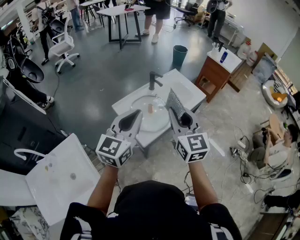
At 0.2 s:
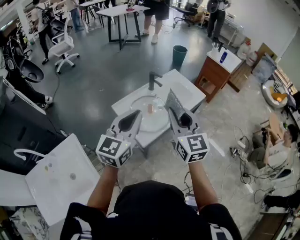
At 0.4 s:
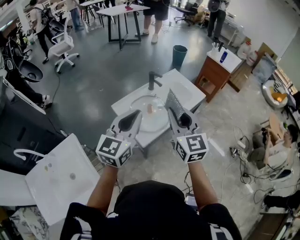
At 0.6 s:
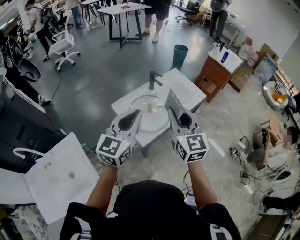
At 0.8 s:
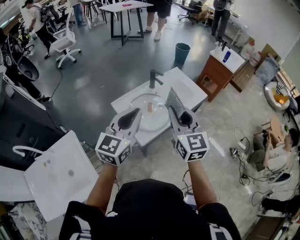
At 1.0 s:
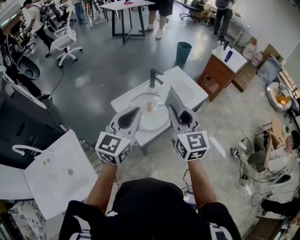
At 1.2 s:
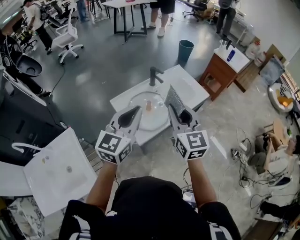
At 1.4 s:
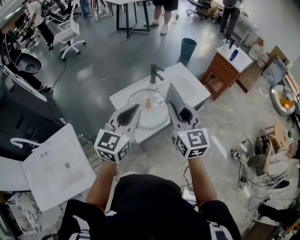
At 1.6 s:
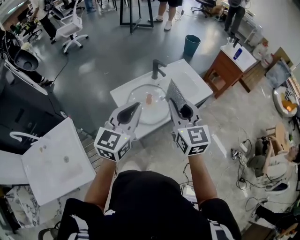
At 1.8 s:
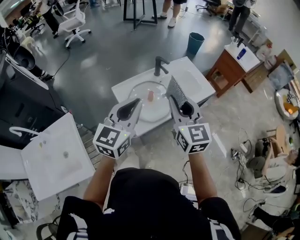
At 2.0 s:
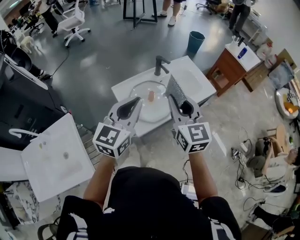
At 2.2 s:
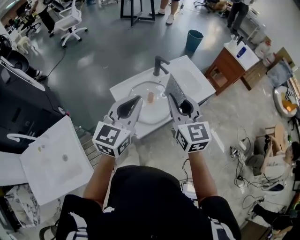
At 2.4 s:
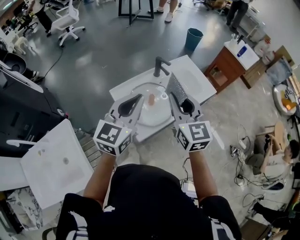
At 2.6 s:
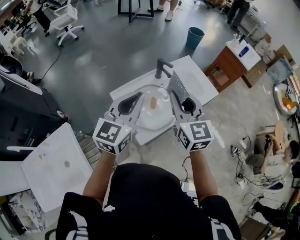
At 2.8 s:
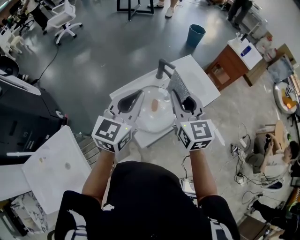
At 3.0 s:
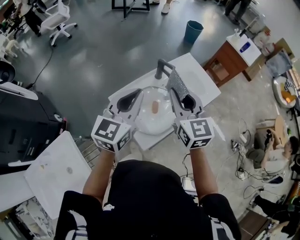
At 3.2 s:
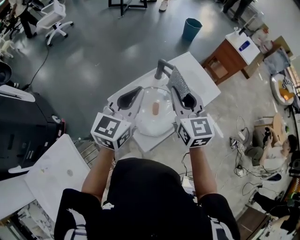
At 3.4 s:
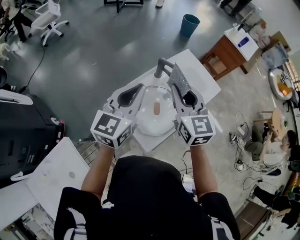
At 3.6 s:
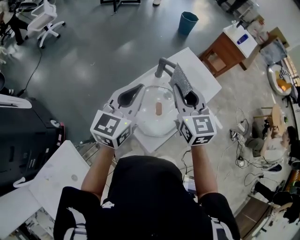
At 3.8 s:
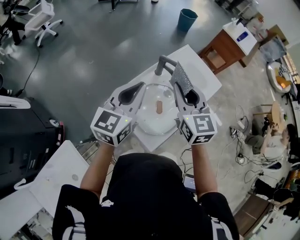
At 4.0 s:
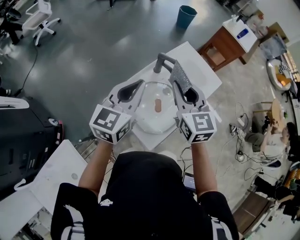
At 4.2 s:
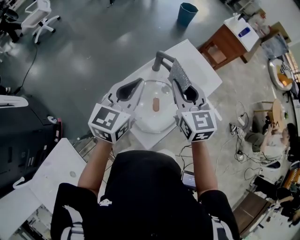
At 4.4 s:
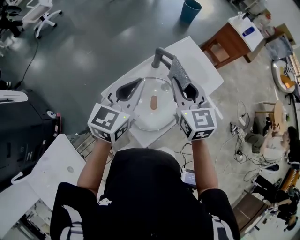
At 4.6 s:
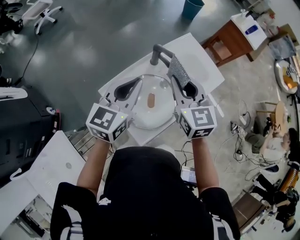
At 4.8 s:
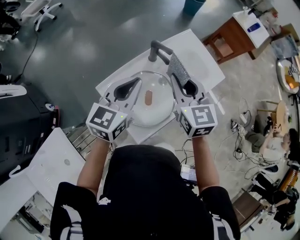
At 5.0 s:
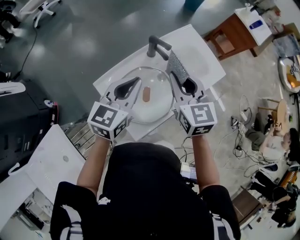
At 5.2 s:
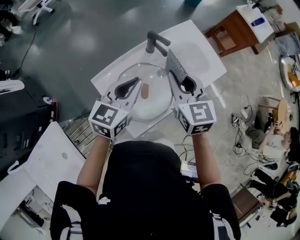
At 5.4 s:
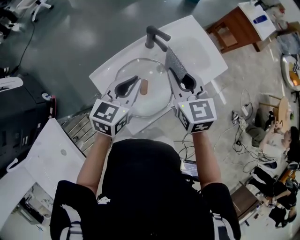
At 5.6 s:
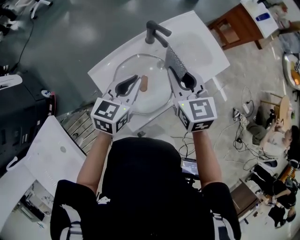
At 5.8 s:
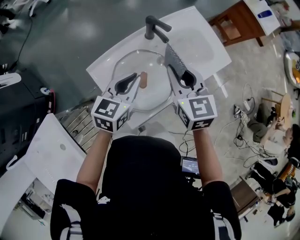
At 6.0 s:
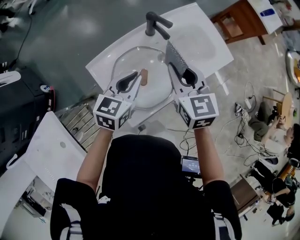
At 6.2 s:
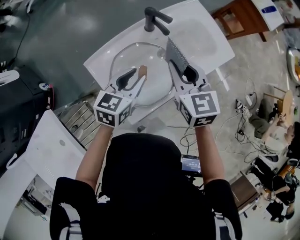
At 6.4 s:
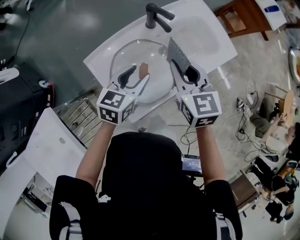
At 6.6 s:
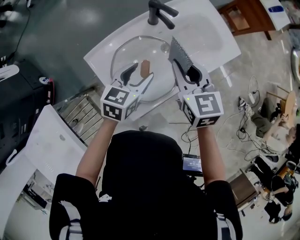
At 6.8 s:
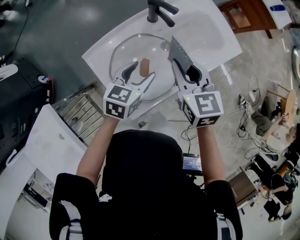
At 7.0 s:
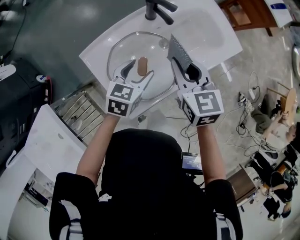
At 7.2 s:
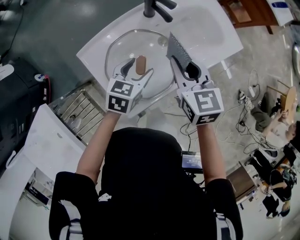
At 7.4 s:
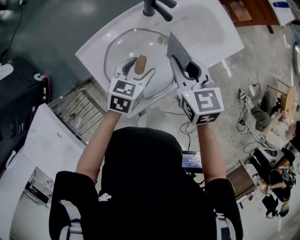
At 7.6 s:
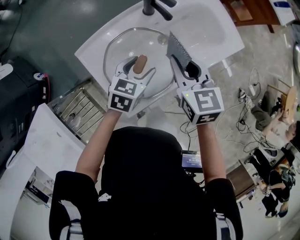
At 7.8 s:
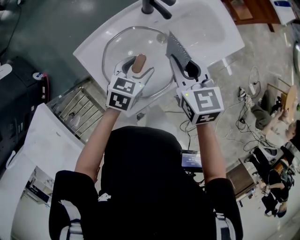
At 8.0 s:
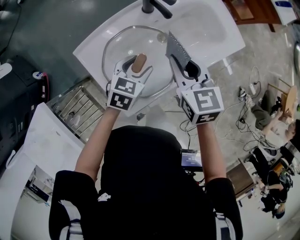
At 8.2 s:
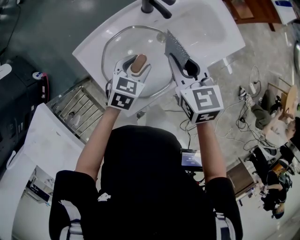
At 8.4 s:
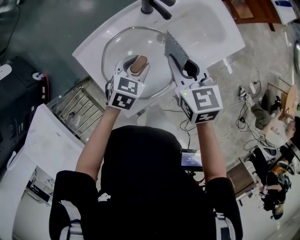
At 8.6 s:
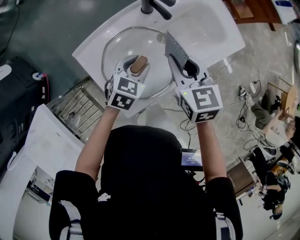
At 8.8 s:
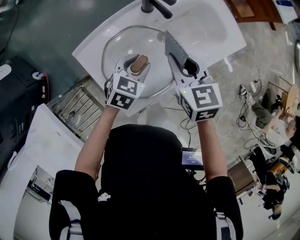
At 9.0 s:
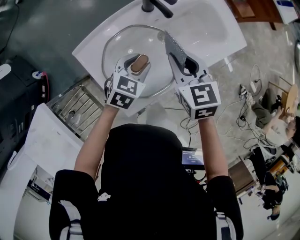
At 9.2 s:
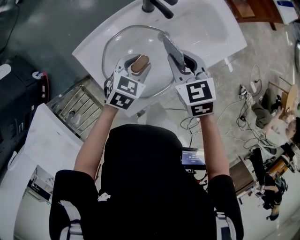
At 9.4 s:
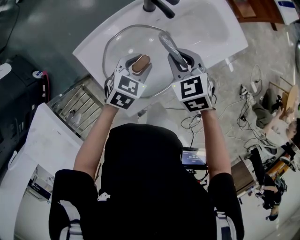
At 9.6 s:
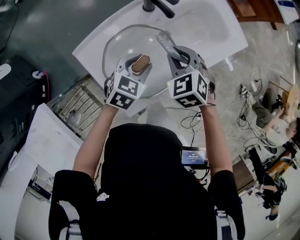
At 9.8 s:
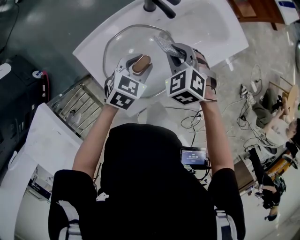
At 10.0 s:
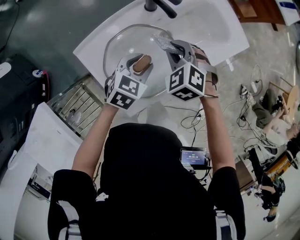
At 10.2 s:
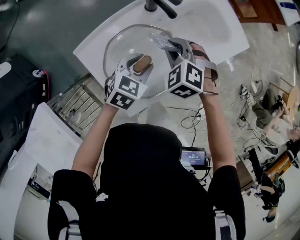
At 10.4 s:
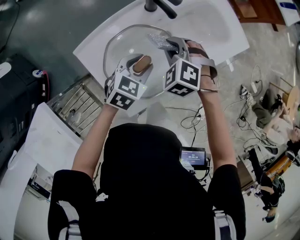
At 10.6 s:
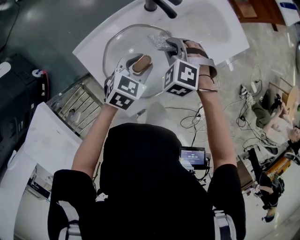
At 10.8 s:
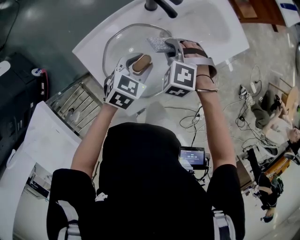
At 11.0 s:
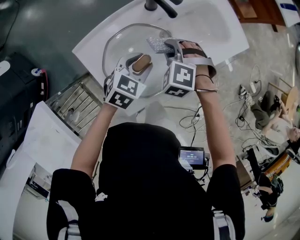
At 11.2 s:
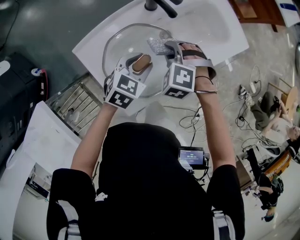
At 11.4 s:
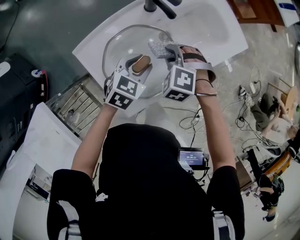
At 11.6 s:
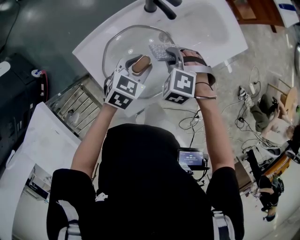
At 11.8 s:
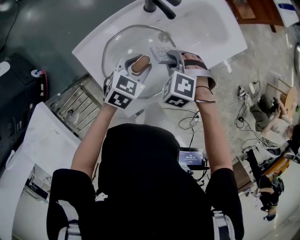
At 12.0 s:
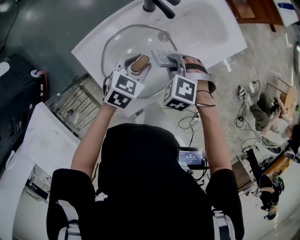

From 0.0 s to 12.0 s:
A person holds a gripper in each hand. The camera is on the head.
From 0.0 s to 1.6 s: The left gripper shifts by approximately 5 cm; the right gripper shifts some 5 cm forward.
From 1.6 s to 3.0 s: Both grippers move forward, about 15 cm.
From 3.0 s to 4.4 s: The grippers both shift forward and downward by some 10 cm.
From 4.4 s to 6.0 s: The left gripper is displaced downward by some 15 cm. Meanwhile the right gripper goes approximately 10 cm downward.
From 6.0 s to 7.6 s: The right gripper moves downward, some 10 cm; the left gripper goes approximately 10 cm downward, and opens up.
From 7.6 s to 9.0 s: The left gripper closes its fingers.
From 9.0 s to 10.4 s: The right gripper heads downward, covering approximately 10 cm, and rotates around the line of its fingers by approximately 50 degrees, counterclockwise from behind.
From 10.4 s to 12.0 s: The right gripper heads backward, covering roughly 5 cm.

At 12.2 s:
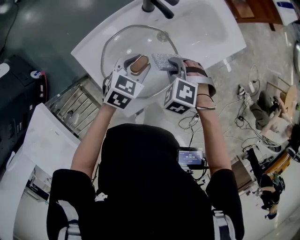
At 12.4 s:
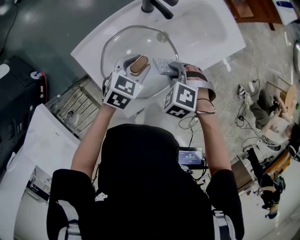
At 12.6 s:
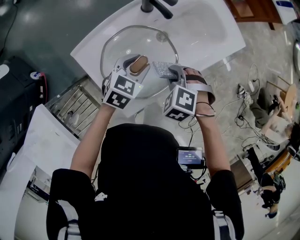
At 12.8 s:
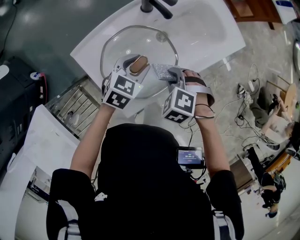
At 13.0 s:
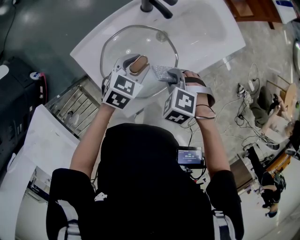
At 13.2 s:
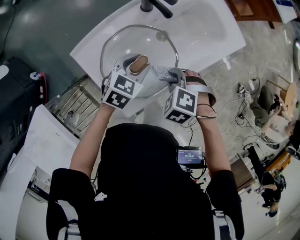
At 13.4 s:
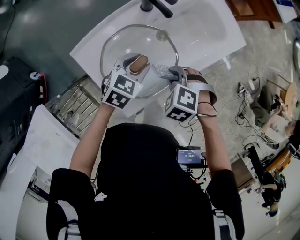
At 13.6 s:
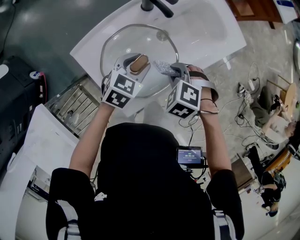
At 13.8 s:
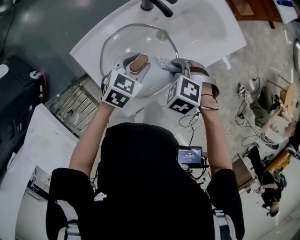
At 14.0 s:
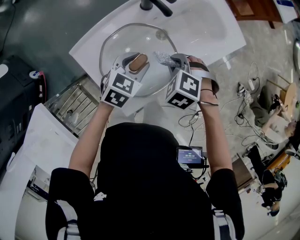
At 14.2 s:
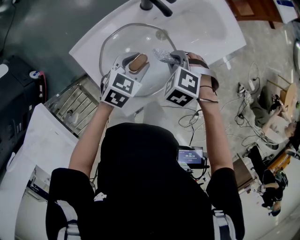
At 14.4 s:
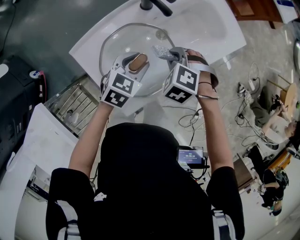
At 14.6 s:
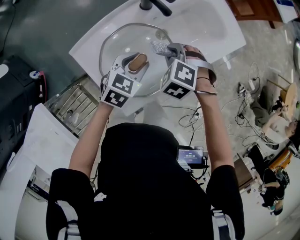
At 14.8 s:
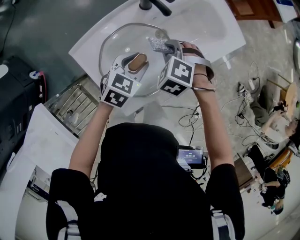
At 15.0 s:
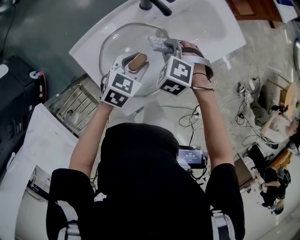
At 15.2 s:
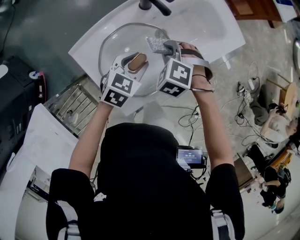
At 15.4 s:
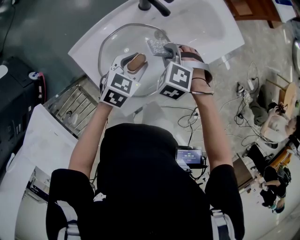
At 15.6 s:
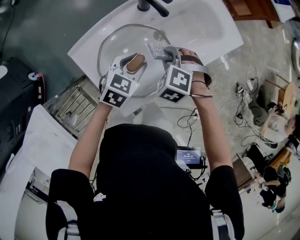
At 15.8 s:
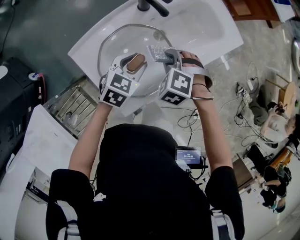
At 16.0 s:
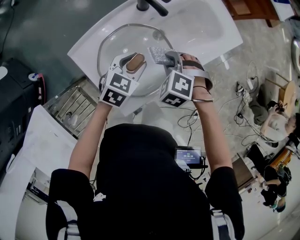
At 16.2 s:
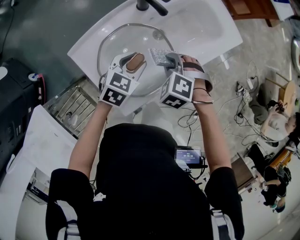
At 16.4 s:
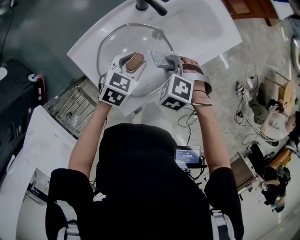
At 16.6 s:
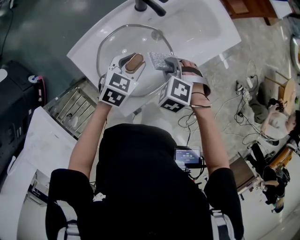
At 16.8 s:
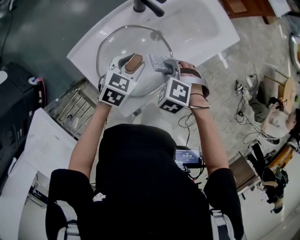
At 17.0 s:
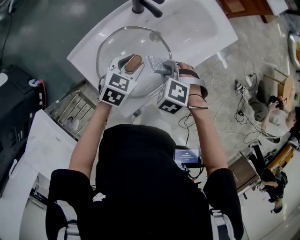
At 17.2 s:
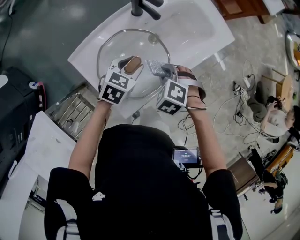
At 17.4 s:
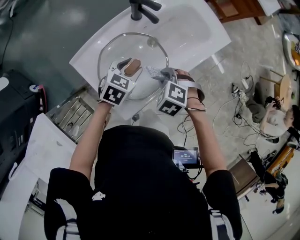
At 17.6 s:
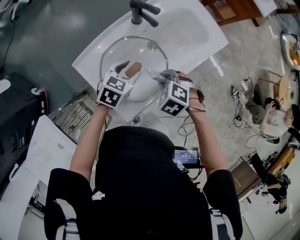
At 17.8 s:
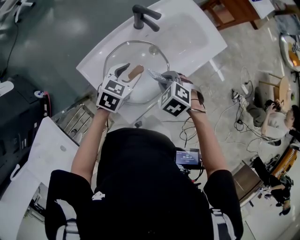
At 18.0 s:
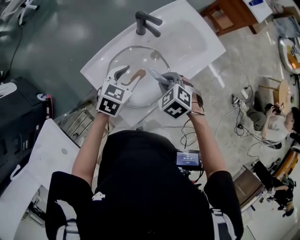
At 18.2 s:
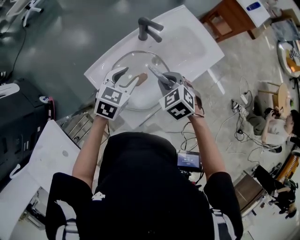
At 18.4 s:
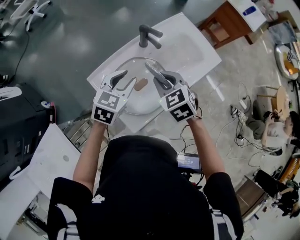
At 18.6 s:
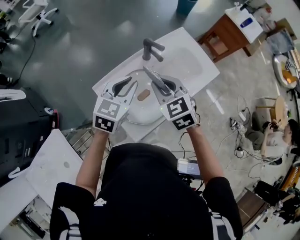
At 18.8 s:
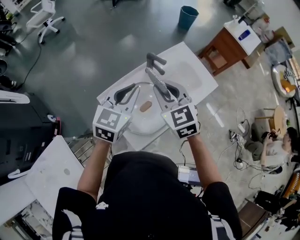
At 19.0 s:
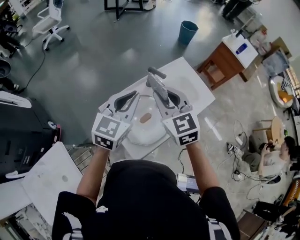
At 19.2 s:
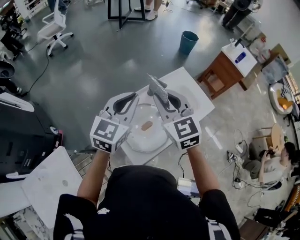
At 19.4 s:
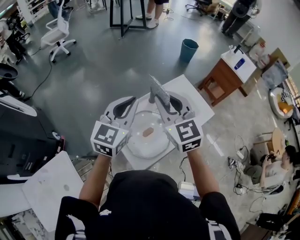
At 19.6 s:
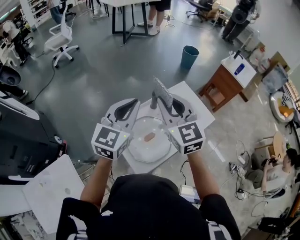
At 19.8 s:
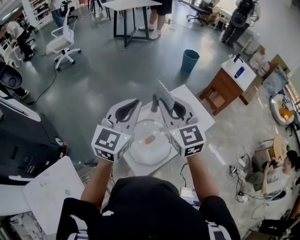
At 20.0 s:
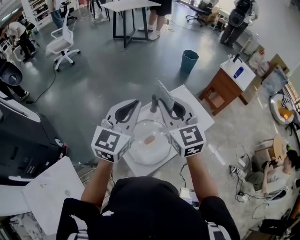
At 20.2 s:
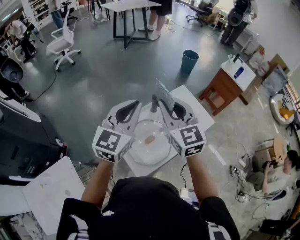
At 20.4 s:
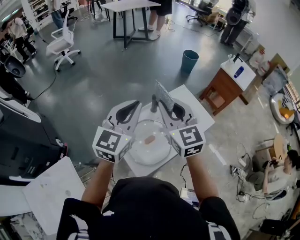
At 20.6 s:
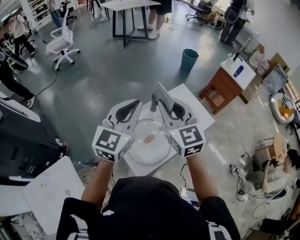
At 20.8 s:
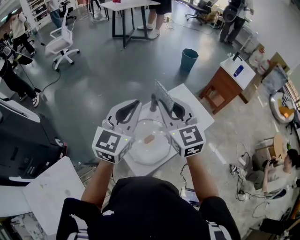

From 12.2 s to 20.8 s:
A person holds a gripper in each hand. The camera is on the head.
From 12.2 s to 13.6 s: The grippers make only small movements.
From 13.6 s to 15.0 s: The right gripper shifts by approximately 10 cm.
From 15.0 s to 16.6 s: The right gripper is displaced backward by roughly 5 cm.
From 16.6 s to 18.0 s: The grippers both shift upward by about 10 cm.
From 18.0 s to 19.4 s: Both grippers travel together upward, approximately 35 cm. The right gripper tilts its fingers roughly 50 degrees upward. Meanwhile the left gripper points its fingers some 40 degrees further upward, and closes up.
From 19.4 s to 20.8 s: There are only small adjustments of the grippers.

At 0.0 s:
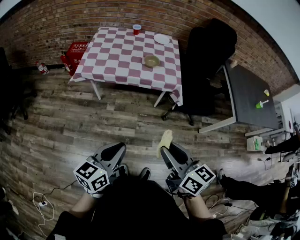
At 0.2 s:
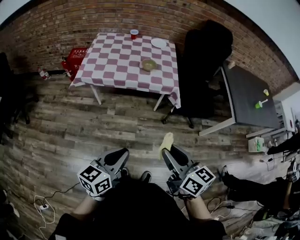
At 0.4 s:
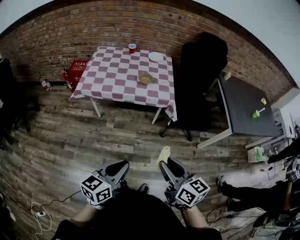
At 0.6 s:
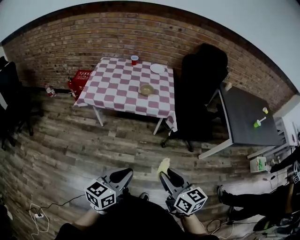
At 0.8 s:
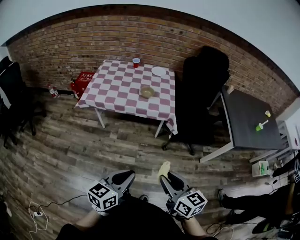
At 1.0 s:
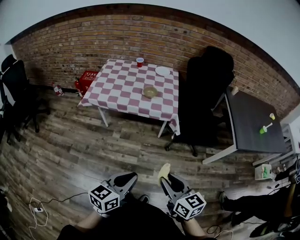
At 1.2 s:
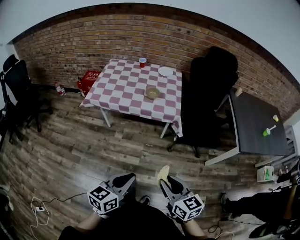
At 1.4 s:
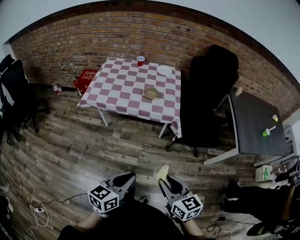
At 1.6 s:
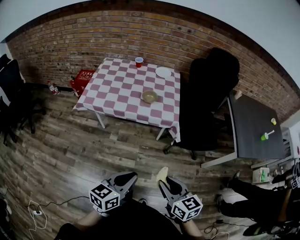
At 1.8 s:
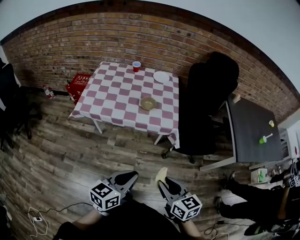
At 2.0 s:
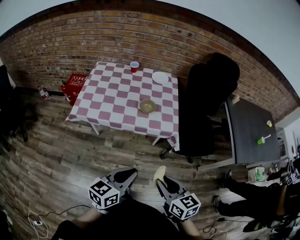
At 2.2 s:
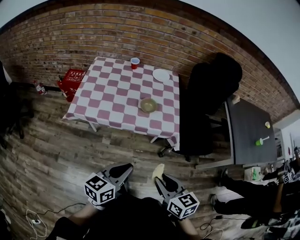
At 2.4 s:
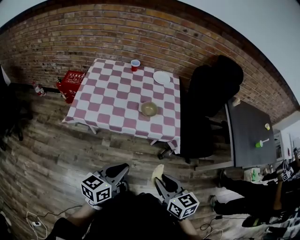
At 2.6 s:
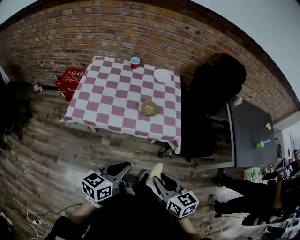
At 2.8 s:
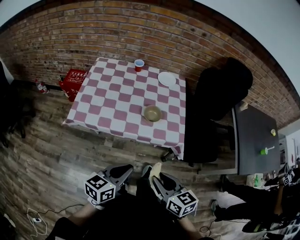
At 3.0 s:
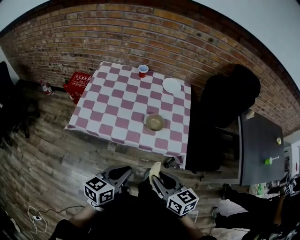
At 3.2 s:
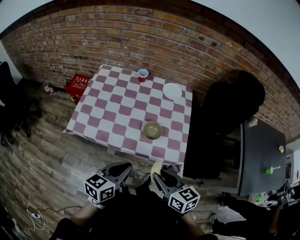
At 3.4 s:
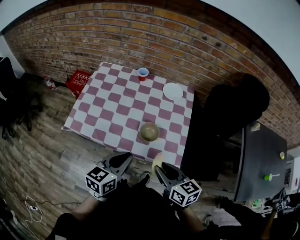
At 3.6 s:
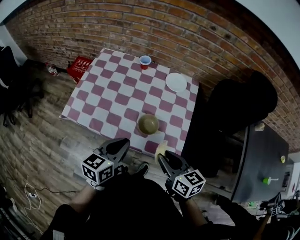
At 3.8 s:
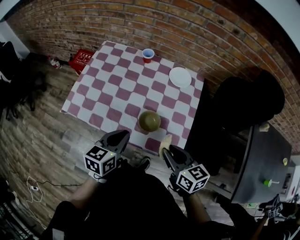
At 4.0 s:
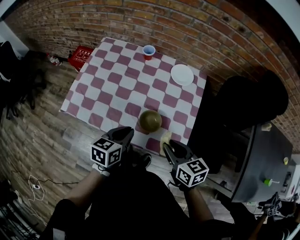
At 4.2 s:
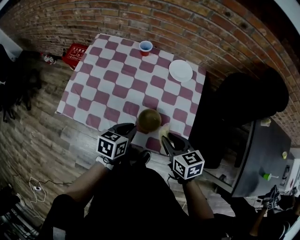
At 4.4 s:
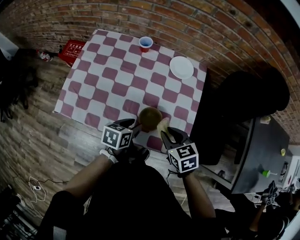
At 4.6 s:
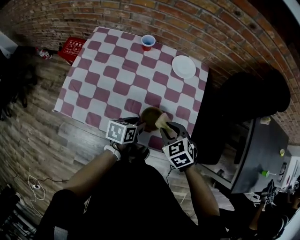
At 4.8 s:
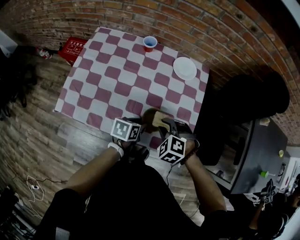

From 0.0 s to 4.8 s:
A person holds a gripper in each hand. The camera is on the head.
From 0.0 s to 1.6 s: The left gripper is displaced to the right and forward by approximately 15 cm. Meanwhile the right gripper moves to the right and downward, about 10 cm.
From 1.6 s to 3.2 s: The grippers both shift forward by some 35 cm.
From 3.2 s to 4.8 s: The grippers both shift forward and downward by roughly 30 cm. The right gripper rolls counterclockwise, seen from behind, by approximately 70 degrees; the left gripper turns by roughly 30 degrees, and opens.
